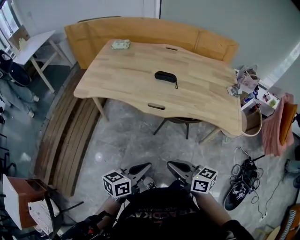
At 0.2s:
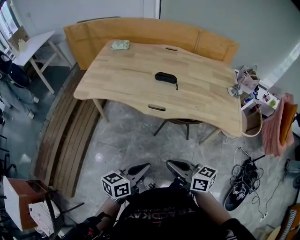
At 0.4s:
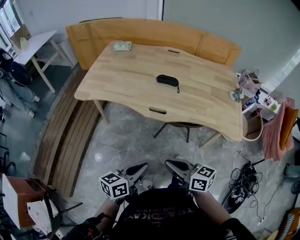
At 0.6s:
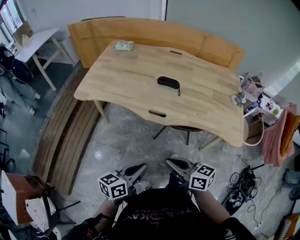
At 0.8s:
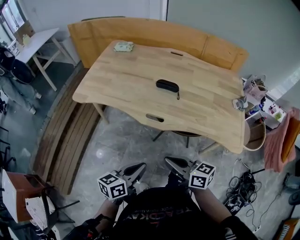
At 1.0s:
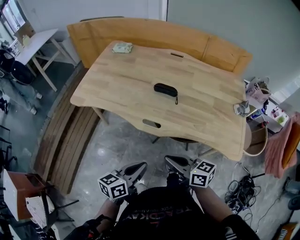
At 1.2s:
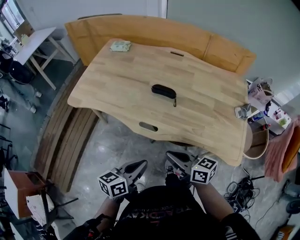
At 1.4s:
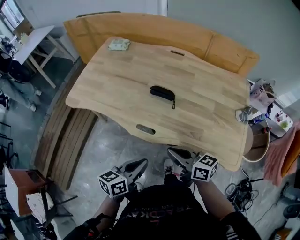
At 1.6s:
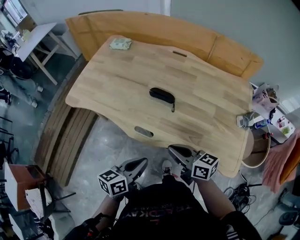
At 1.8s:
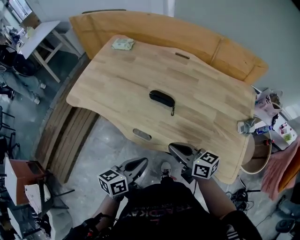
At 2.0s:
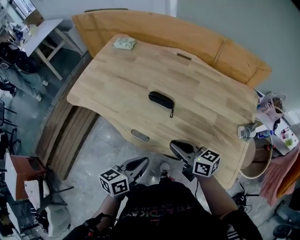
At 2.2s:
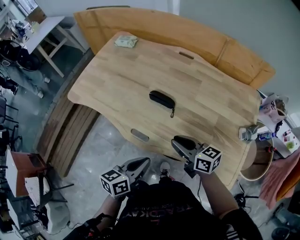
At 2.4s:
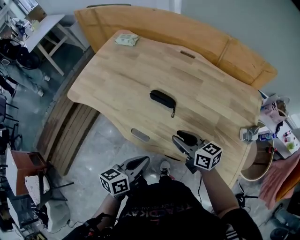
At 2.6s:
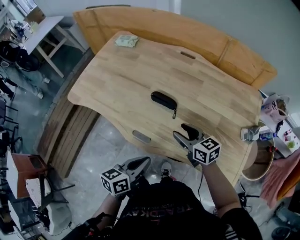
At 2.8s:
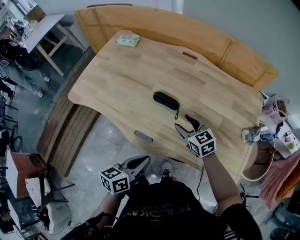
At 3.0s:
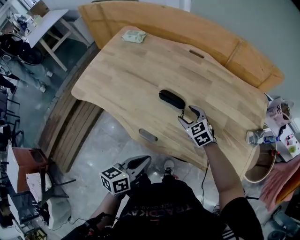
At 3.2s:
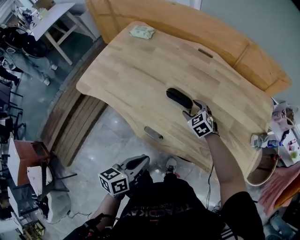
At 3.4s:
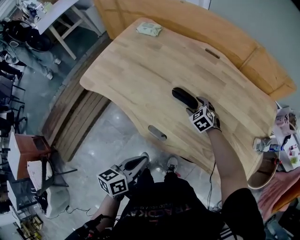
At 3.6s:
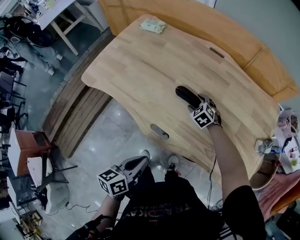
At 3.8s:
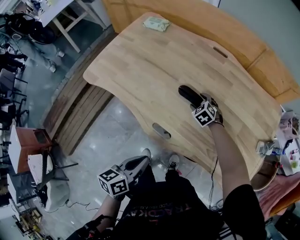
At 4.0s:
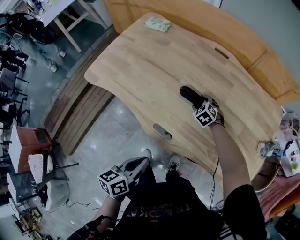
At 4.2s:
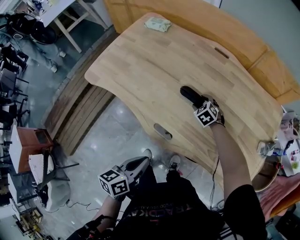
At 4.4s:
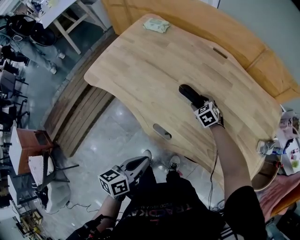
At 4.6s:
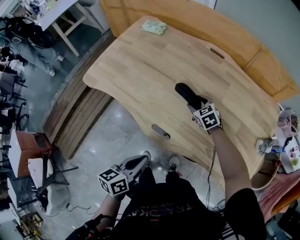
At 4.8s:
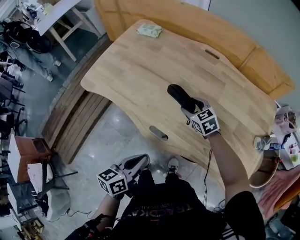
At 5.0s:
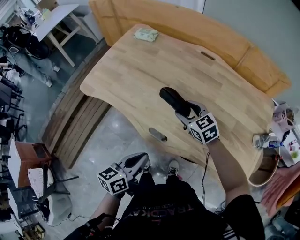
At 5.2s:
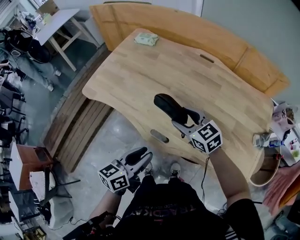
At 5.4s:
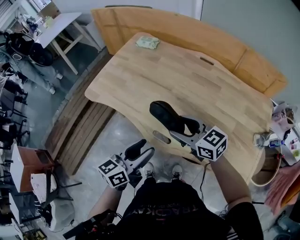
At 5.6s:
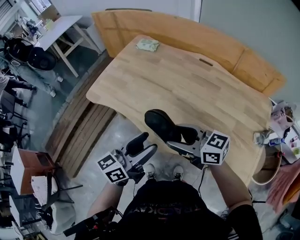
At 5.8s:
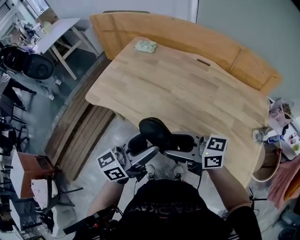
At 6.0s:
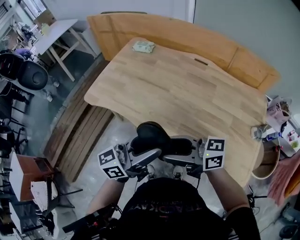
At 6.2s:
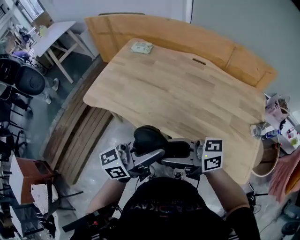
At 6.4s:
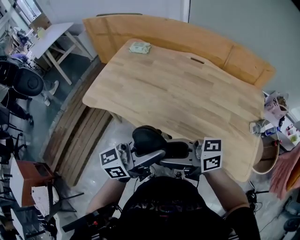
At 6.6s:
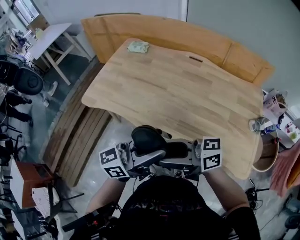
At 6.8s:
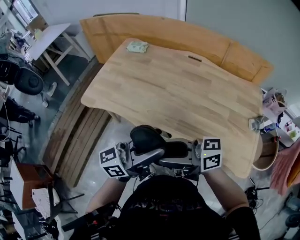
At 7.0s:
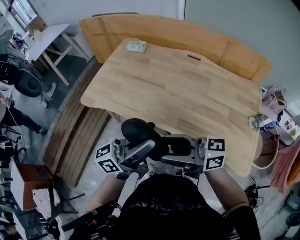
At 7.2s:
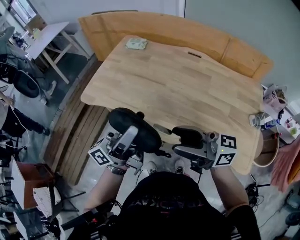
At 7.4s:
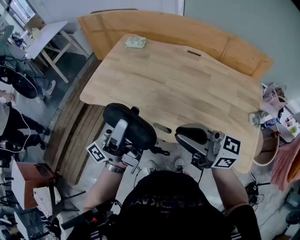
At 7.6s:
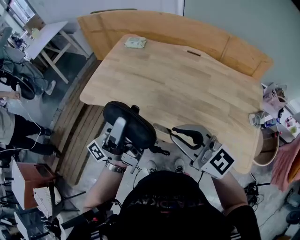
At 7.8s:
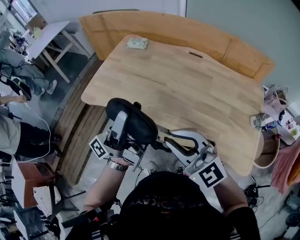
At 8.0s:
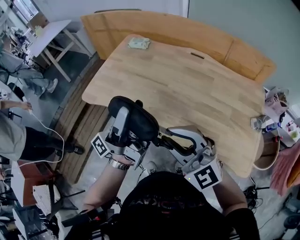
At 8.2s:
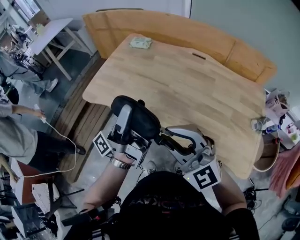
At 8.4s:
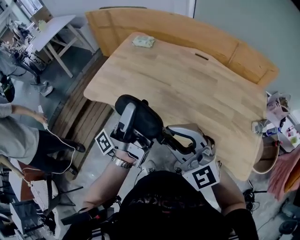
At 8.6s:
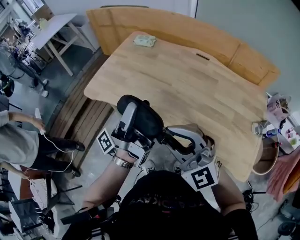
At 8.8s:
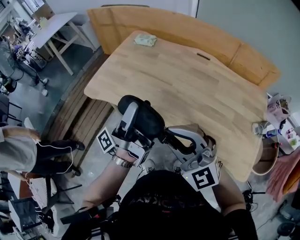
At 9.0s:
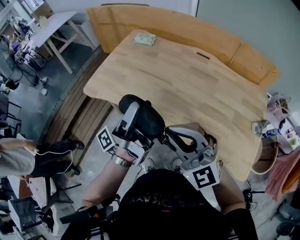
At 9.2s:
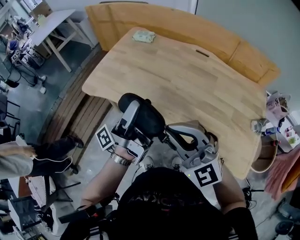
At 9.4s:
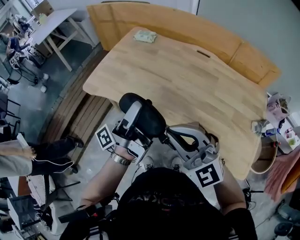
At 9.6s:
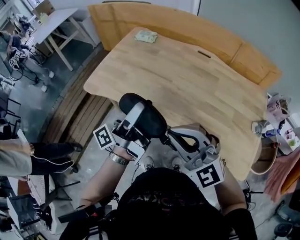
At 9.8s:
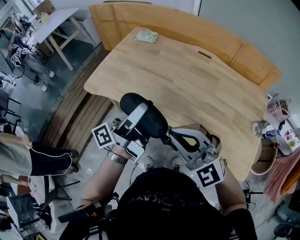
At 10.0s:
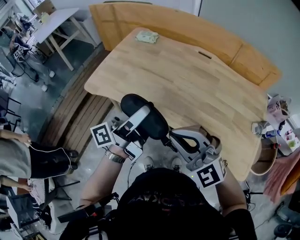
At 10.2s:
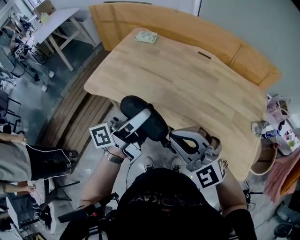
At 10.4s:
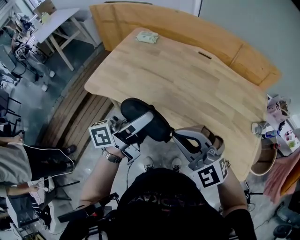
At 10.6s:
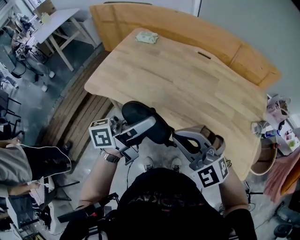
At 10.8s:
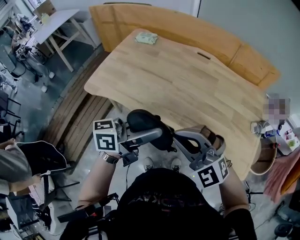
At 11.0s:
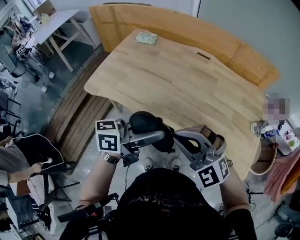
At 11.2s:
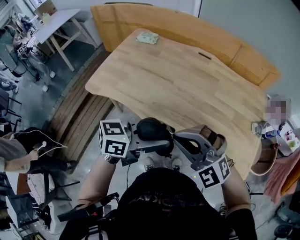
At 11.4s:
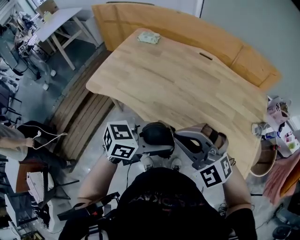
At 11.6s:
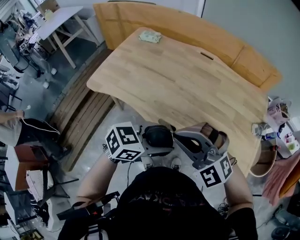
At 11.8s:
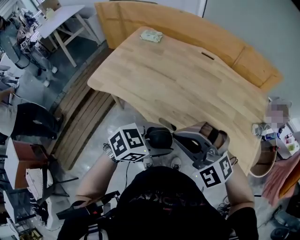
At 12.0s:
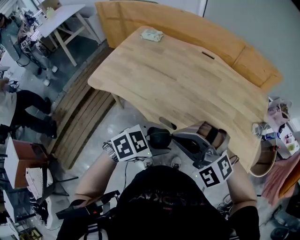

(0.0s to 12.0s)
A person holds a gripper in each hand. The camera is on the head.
0.0s - 1.6s: The two grippers go about 25 cm forward and to the right.
1.6s - 3.0s: The left gripper shifts by about 5 cm, while the right gripper heads forward and downward, covering some 25 cm, rotates roughly 50 degrees, and opens up.
3.0s - 4.4s: The left gripper shifts approximately 5 cm to the left. The right gripper is displaced forward and downward by some 10 cm.
4.4s - 6.0s: The left gripper heads upward, covering roughly 15 cm, angles its fingers upward, by roughly 40 degrees, and opens up, while the right gripper changes place by about 40 cm, and tilts its fingers about 60 degrees upward.
6.0s - 7.6s: The left gripper ends up roughly 10 cm from where it was, and rotates roughly 40 degrees, while the right gripper heads upward, covering some 5 cm, rolls counterclockwise, seen from behind, by roughly 40 degrees, and closes.
7.6s - 9.0s: The left gripper goes some 5 cm downward, while the right gripper rotates approximately 30 degrees.
9.0s - 10.4s: The left gripper rotates about 40 degrees.
10.4s - 12.0s: The left gripper changes place by roughly 15 cm, and points its fingers approximately 60 degrees further downward.

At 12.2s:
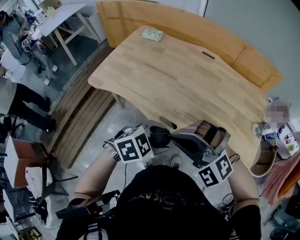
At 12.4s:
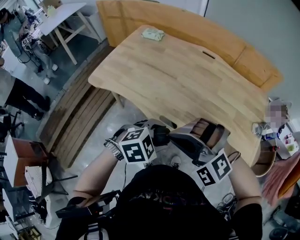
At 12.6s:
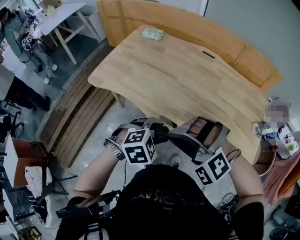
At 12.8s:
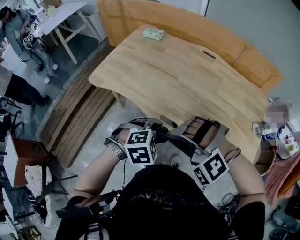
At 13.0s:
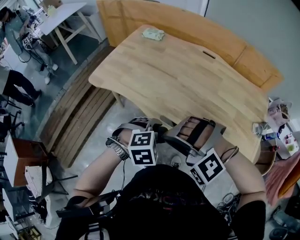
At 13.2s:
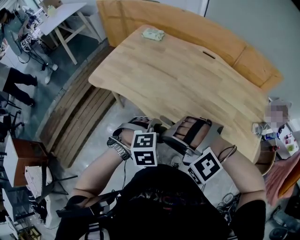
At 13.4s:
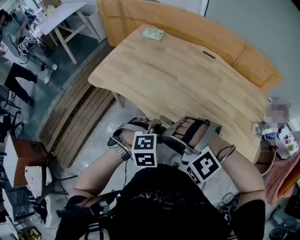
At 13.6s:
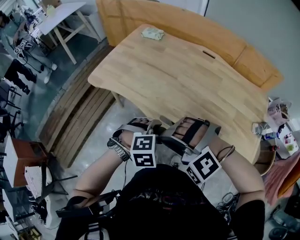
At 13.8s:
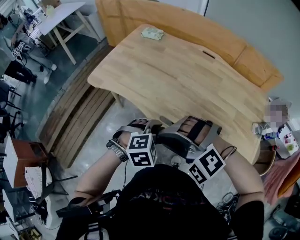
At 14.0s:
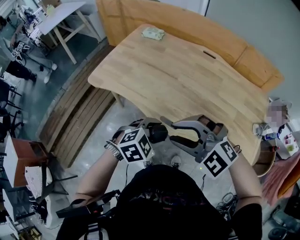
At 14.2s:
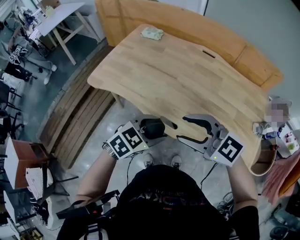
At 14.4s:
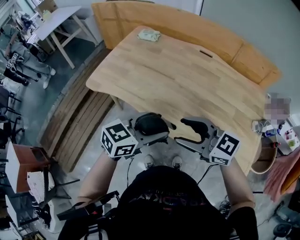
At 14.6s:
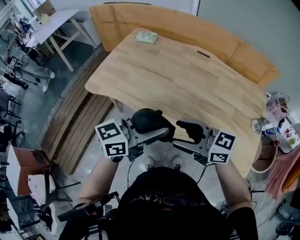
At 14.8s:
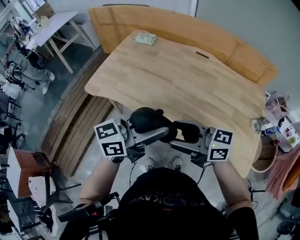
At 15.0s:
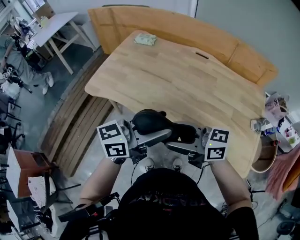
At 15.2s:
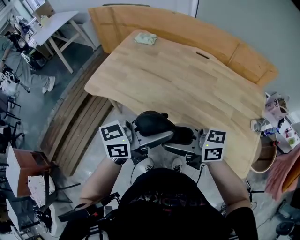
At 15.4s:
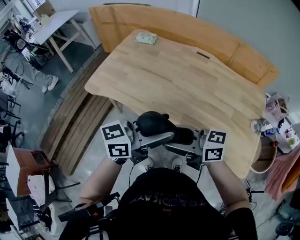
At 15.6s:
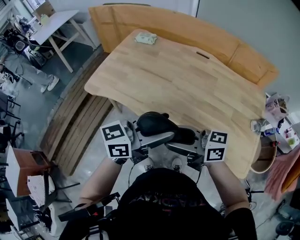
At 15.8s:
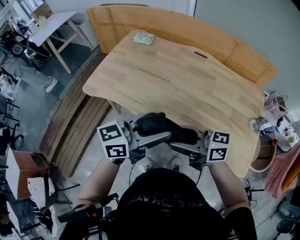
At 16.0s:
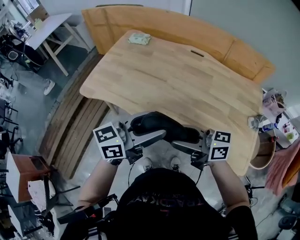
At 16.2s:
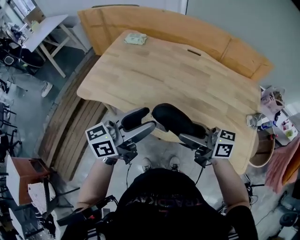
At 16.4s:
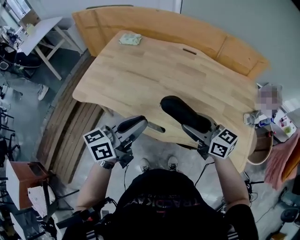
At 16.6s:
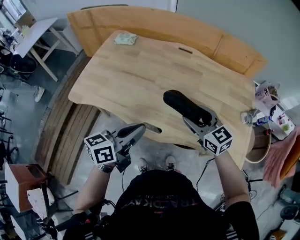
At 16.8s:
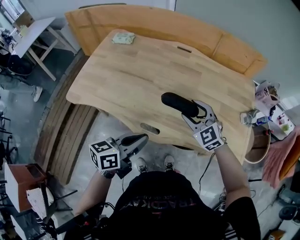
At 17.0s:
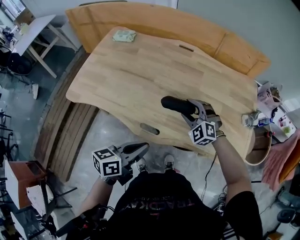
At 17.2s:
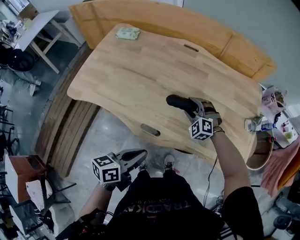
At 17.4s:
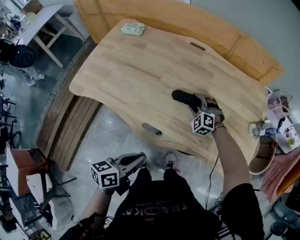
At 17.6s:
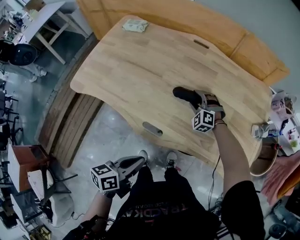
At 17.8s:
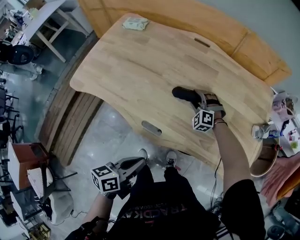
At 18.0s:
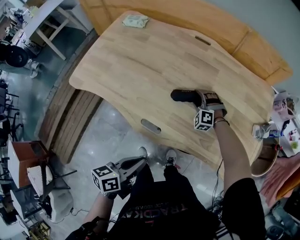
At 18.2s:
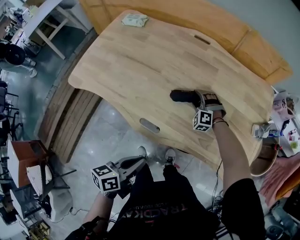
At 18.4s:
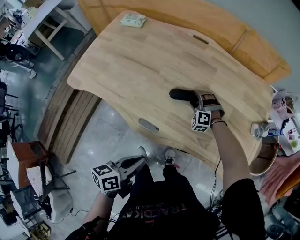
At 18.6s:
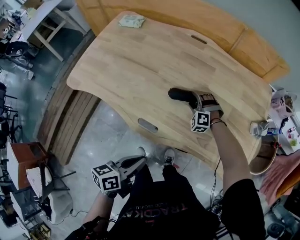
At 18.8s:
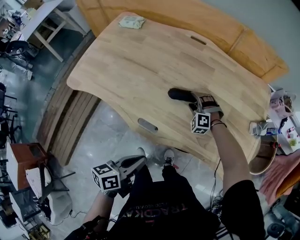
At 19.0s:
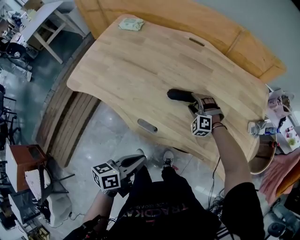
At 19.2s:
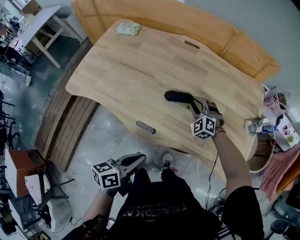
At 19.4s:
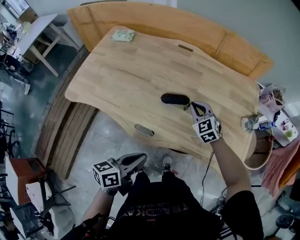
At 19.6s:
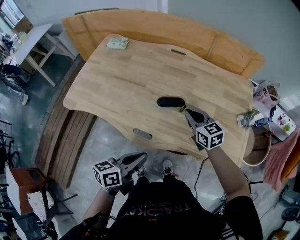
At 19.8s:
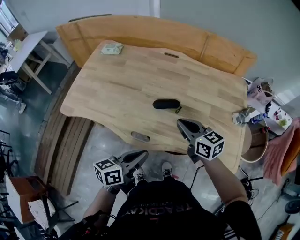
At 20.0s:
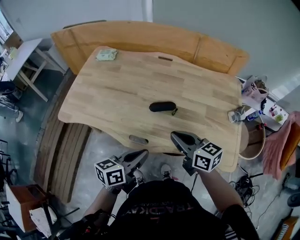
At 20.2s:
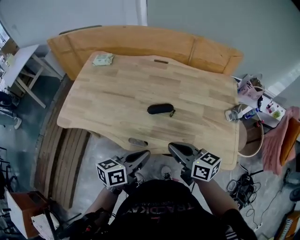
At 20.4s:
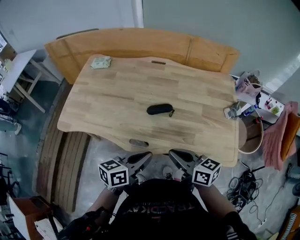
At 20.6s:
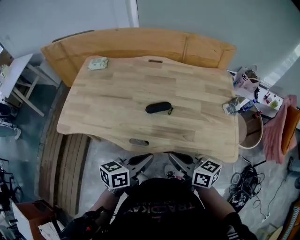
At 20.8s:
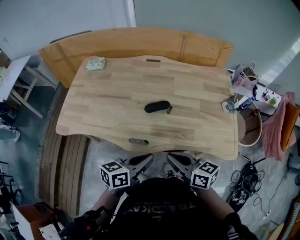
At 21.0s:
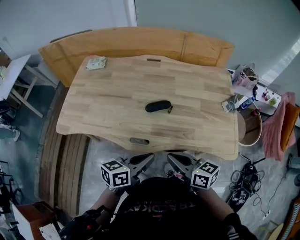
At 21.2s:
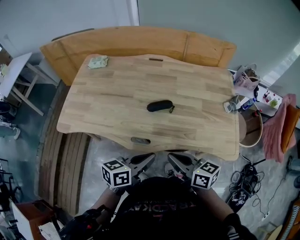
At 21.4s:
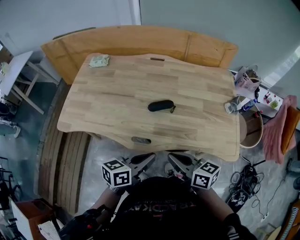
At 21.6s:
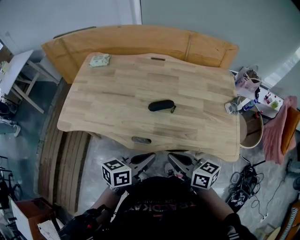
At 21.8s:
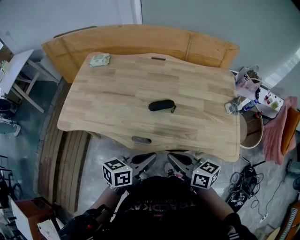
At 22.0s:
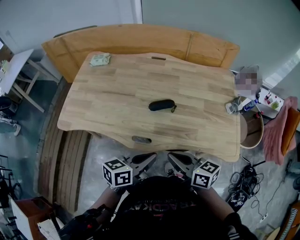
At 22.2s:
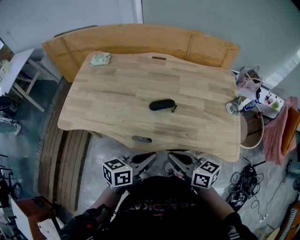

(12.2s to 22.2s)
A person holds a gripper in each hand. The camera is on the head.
12.2s - 13.6s: The left gripper shifts by about 5 cm, and changes its angle by roughly 30 degrees. The right gripper ends up about 5 cm from where it was, and changes its angle by about 20 degrees.
13.6s - 15.0s: The left gripper is displaced upward by approximately 15 cm, and angles its fingers upward, by roughly 70 degrees. Meanwhile the right gripper changes place by about 5 cm, rotates around the line of its fingers by roughly 90 degrees, clockwise from behind, and opens up.
15.0s - 16.4s: The right gripper ends up some 15 cm from where it was, and swivels roughly 30 degrees; the left gripper changes place by about 5 cm, and closes up.
16.4s - 18.0s: The left gripper is displaced downward, backward and to the right by approximately 20 cm, and turns by some 30 degrees; the right gripper is displaced downward and forward by roughly 35 cm, and rolls counterclockwise, seen from behind, by approximately 80 degrees.
18.0s - 19.4s: The right gripper goes roughly 15 cm upward and backward, twists some 50 degrees clockwise, seen from behind, and closes its fingers.
19.4s - 20.8s: The left gripper changes its angle by approximately 20 degrees. The right gripper heads backward and upward, covering roughly 25 cm, and rotates around the line of its fingers by about 60 degrees, clockwise from behind.
20.8s - 22.2s: The two grippers keep their place.

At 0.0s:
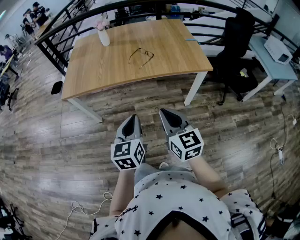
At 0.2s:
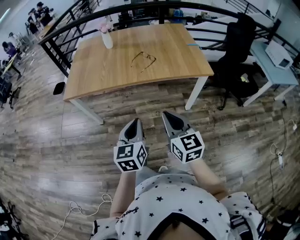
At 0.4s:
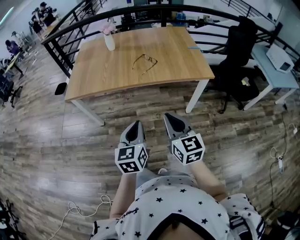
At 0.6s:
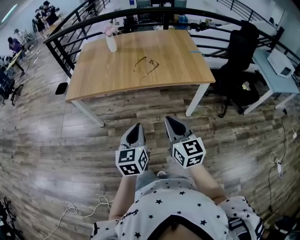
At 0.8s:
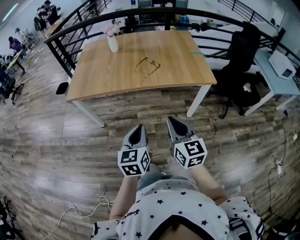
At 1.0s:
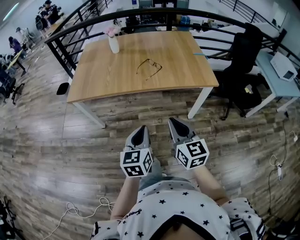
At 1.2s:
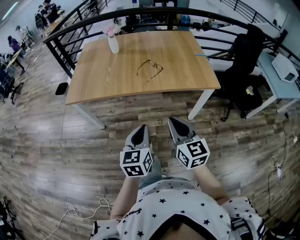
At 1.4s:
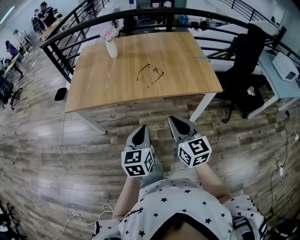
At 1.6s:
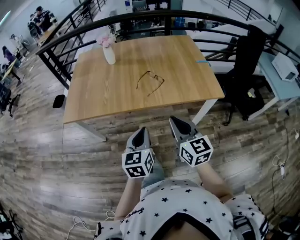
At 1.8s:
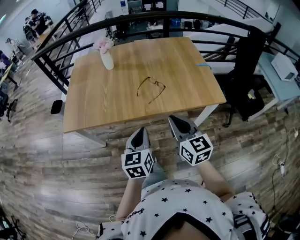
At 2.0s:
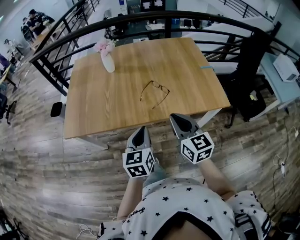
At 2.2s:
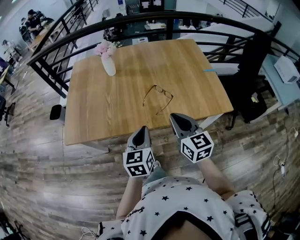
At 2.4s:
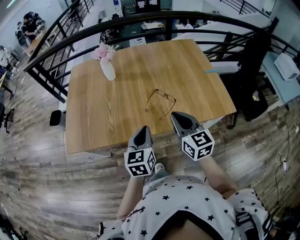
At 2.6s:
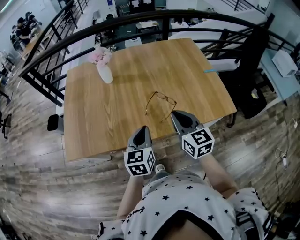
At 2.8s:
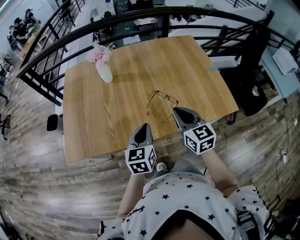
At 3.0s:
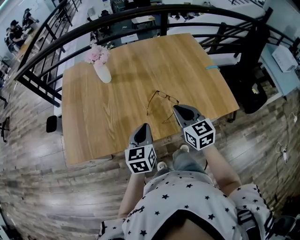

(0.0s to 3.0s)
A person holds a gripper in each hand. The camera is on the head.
0.0s - 1.6s: Both grippers travel together forward, approximately 15 cm.
1.6s - 3.0s: The grippers both shift forward by some 25 cm.
